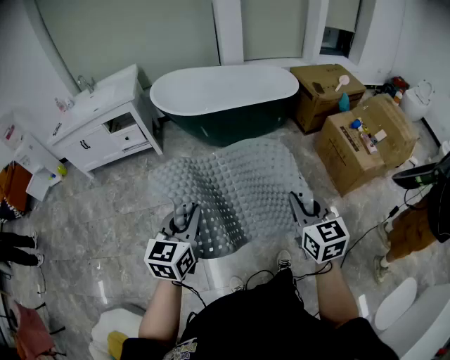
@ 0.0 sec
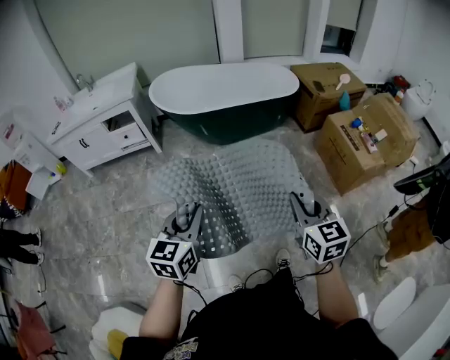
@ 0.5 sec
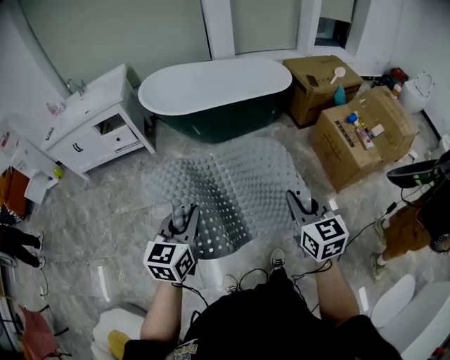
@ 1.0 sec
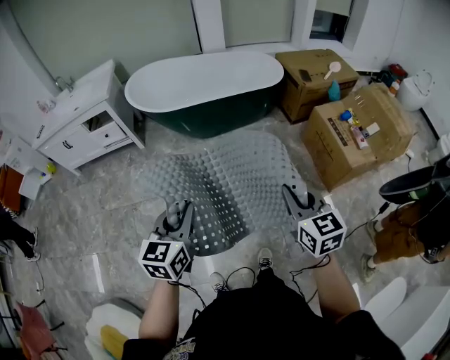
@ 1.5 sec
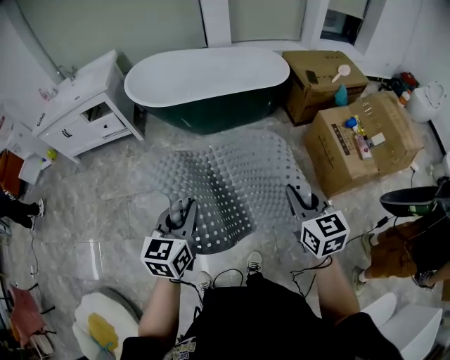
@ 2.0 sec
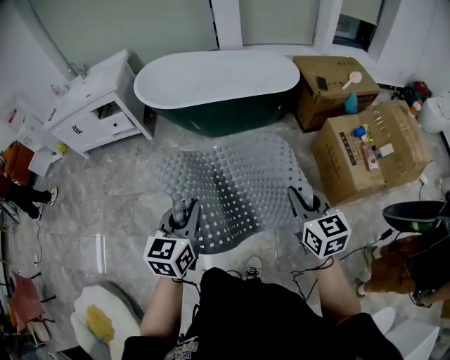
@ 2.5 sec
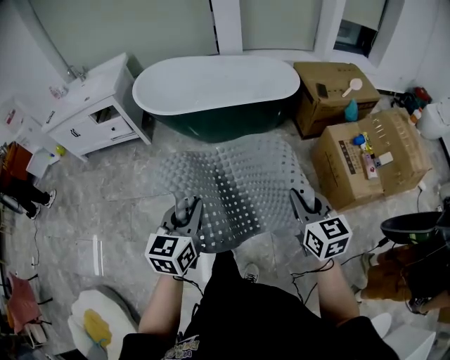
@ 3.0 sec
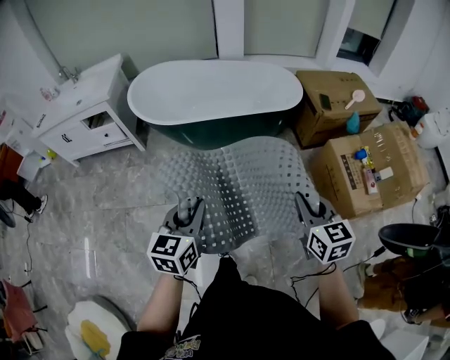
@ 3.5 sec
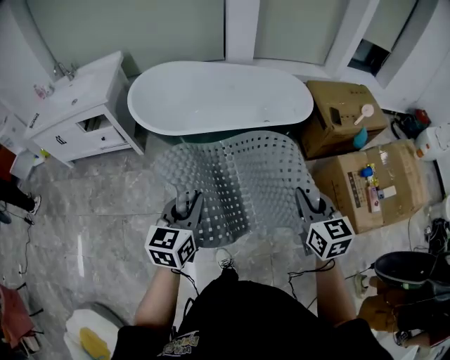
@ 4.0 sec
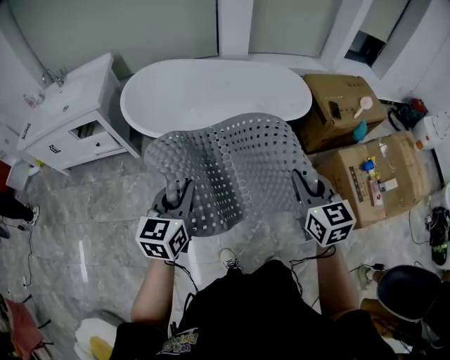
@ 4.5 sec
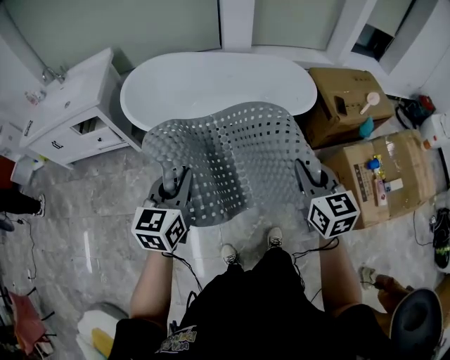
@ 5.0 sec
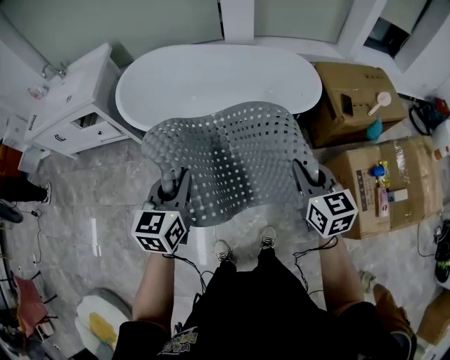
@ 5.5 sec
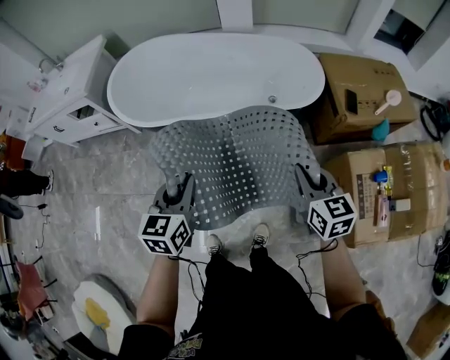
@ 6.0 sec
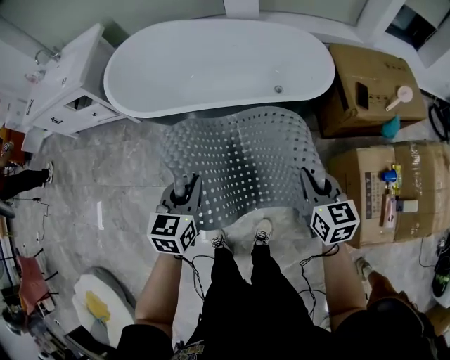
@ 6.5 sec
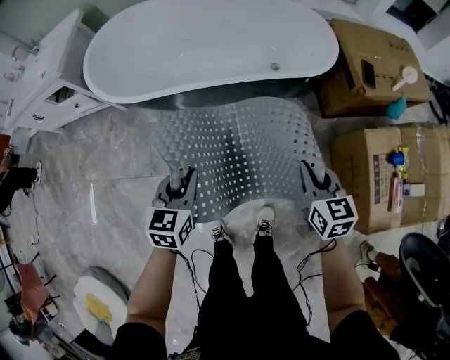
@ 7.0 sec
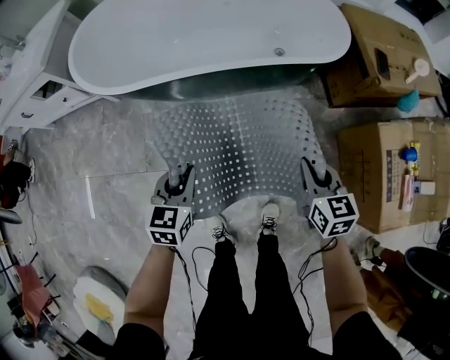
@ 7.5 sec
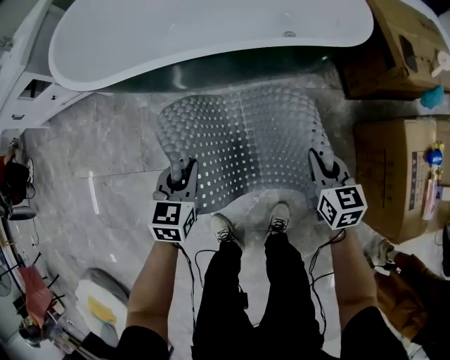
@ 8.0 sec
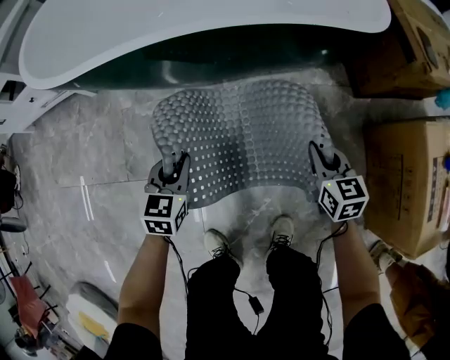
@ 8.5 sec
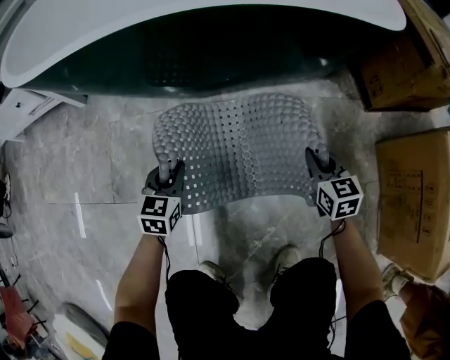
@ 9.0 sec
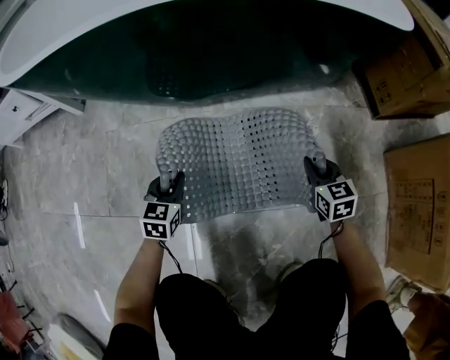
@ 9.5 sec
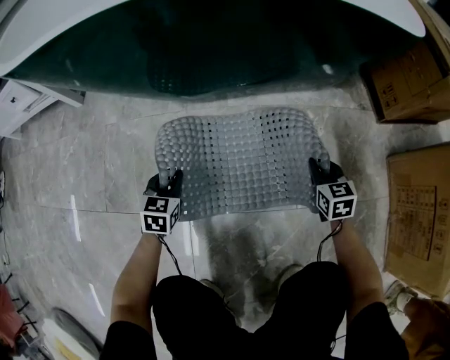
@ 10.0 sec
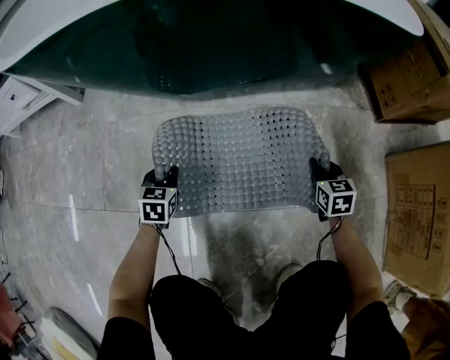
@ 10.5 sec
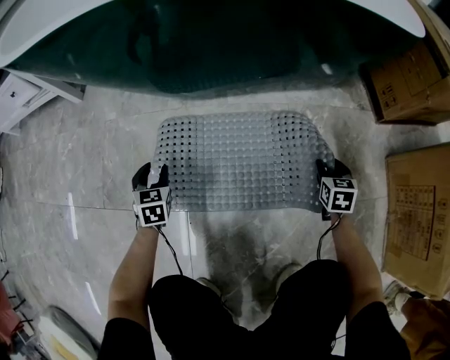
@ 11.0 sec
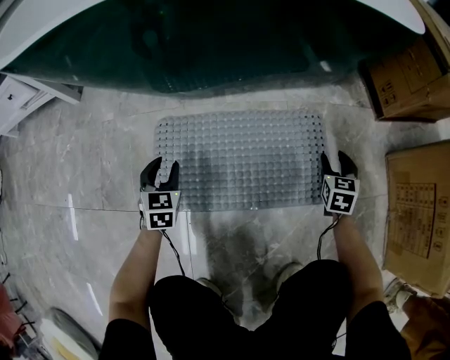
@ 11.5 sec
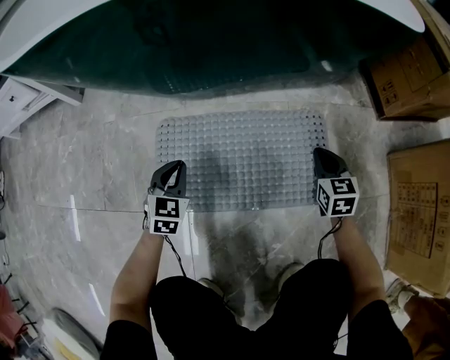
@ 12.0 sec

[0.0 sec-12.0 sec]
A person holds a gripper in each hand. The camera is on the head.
0.0 sec to 2.0 sec: The two grippers go roughly 25 cm to the right and forward.
2.0 sec to 4.0 sec: Both grippers travel together forward, about 30 cm.
4.0 sec to 6.0 sec: The left gripper travels forward and to the right by some 20 cm, while the right gripper shifts roughly 25 cm forward, to the right and downward.
6.0 sec to 8.0 sec: The grippers both shift downward by about 40 cm.
8.0 sec to 10.0 sec: The grippers both shift downward by roughly 40 cm.
10.0 sec to 12.0 sec: The left gripper moves some 5 cm to the left and comes back, and opens and closes again. The right gripper opens and closes again.

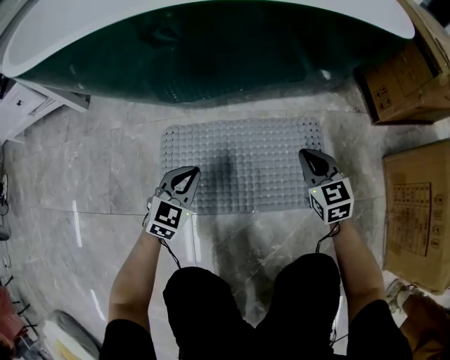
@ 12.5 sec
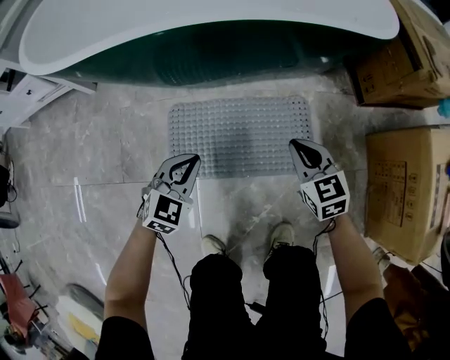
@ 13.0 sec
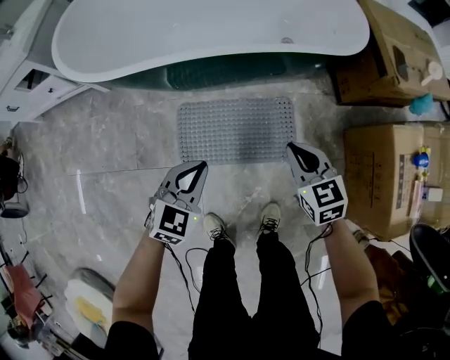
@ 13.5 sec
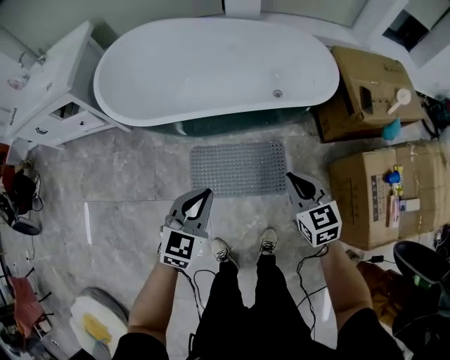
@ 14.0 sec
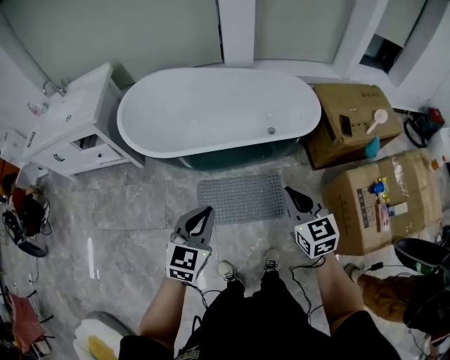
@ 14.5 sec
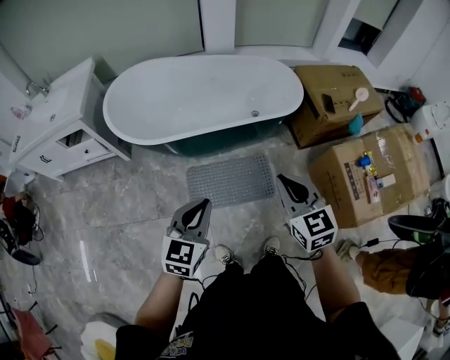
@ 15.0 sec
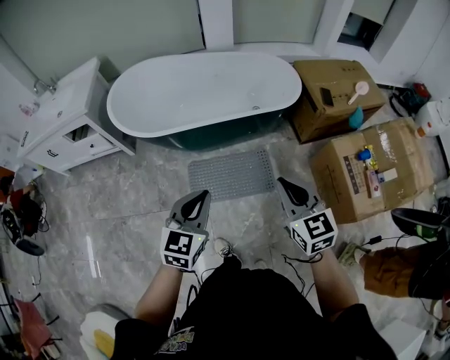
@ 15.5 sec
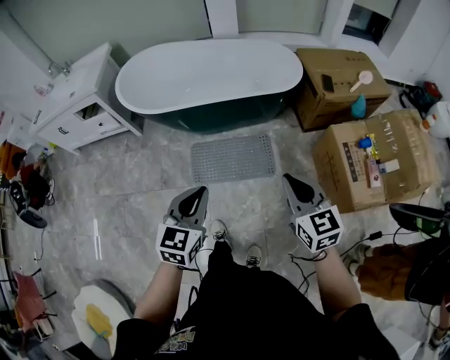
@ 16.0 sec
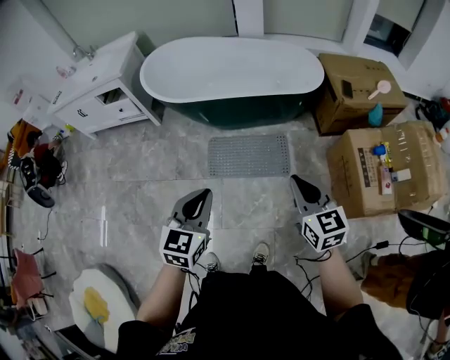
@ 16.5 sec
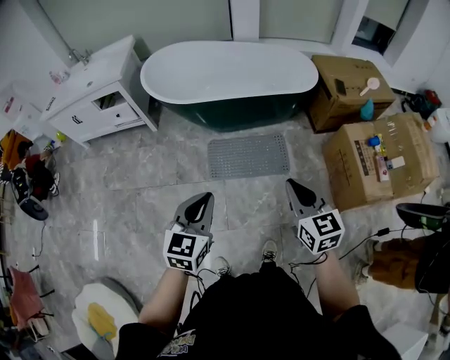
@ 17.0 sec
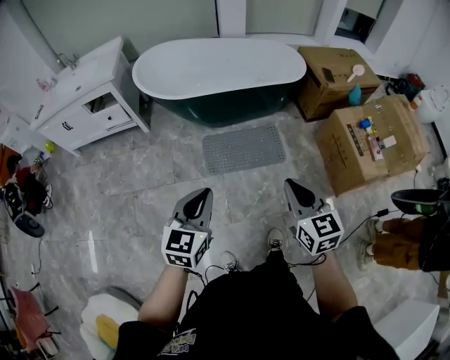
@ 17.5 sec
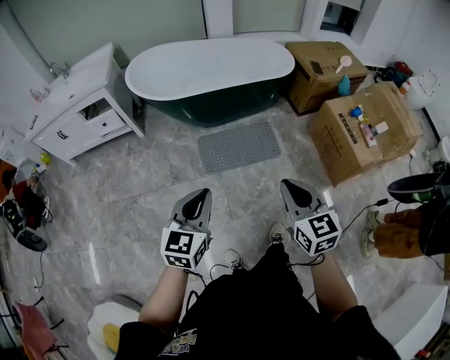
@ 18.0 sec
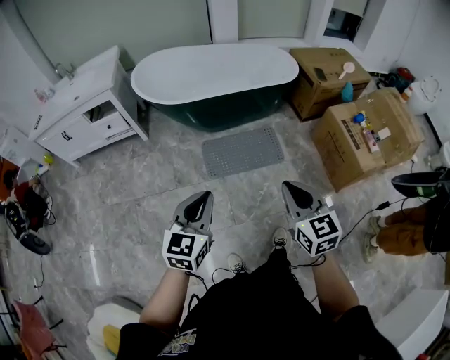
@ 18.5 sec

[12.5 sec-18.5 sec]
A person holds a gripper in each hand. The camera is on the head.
12.5 sec to 14.5 sec: Both grippers move upward, roughly 70 cm.
14.5 sec to 16.5 sec: Both grippers move backward, some 25 cm.
16.5 sec to 18.5 sec: Both grippers move to the left and backward, approximately 25 cm.

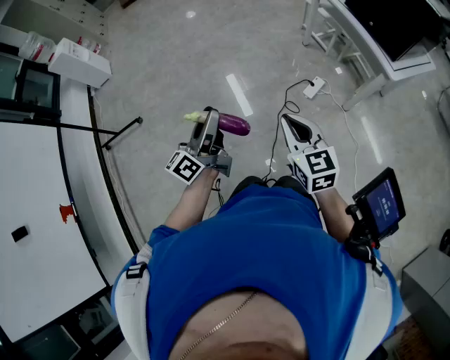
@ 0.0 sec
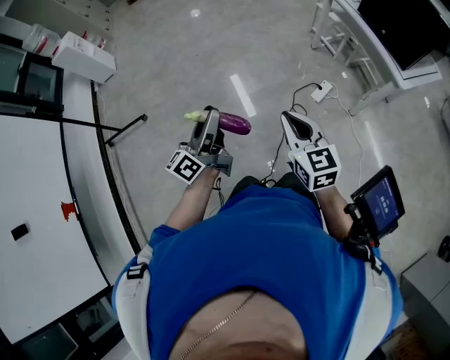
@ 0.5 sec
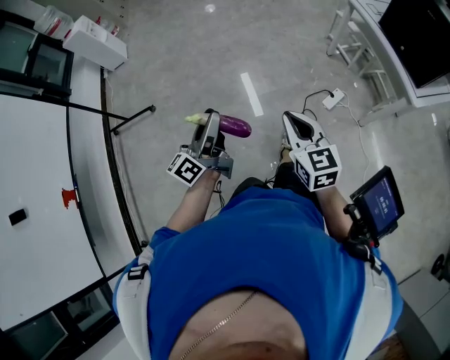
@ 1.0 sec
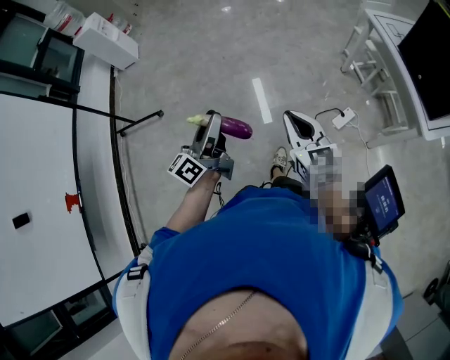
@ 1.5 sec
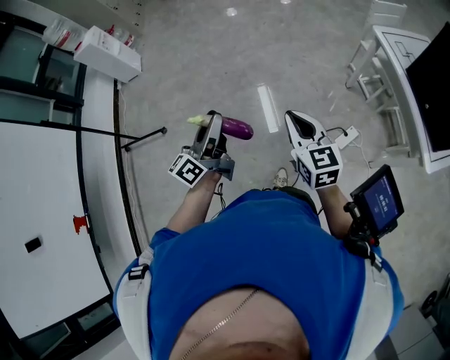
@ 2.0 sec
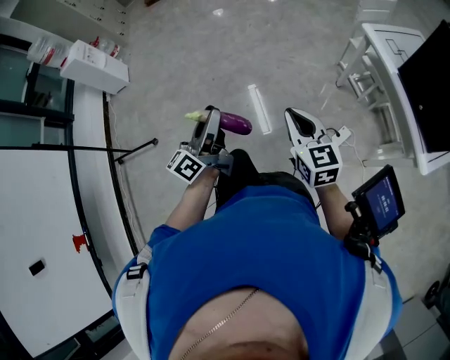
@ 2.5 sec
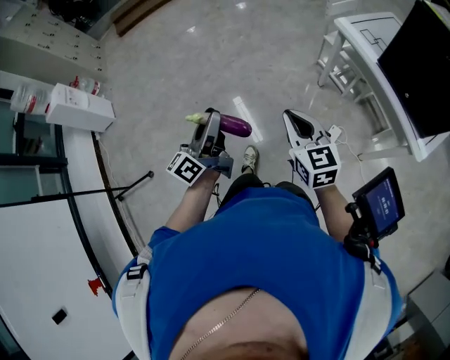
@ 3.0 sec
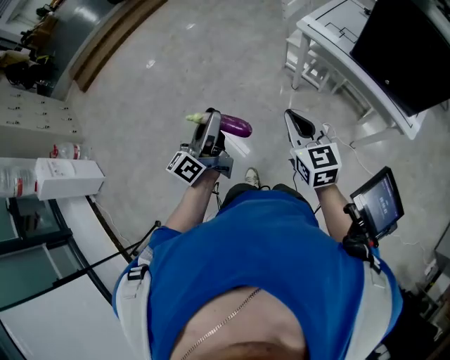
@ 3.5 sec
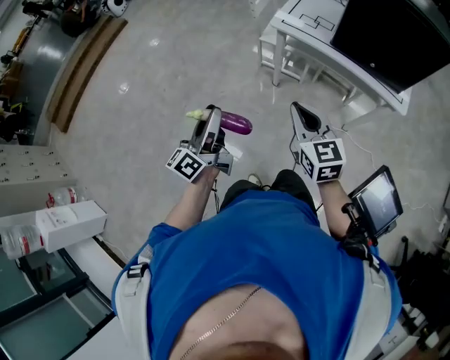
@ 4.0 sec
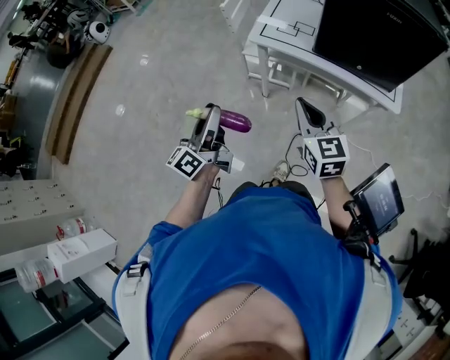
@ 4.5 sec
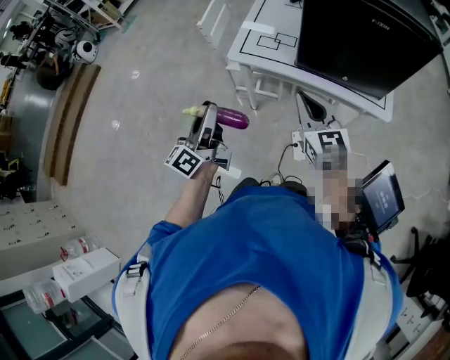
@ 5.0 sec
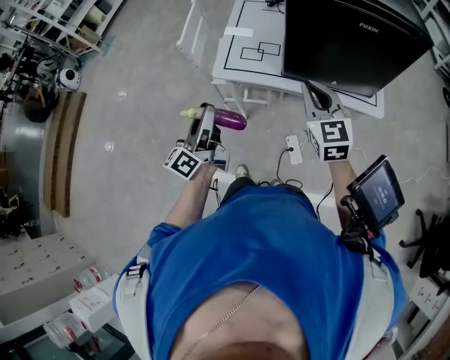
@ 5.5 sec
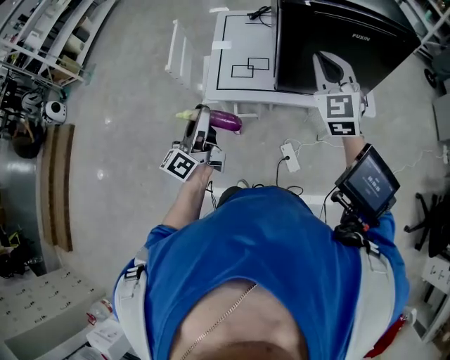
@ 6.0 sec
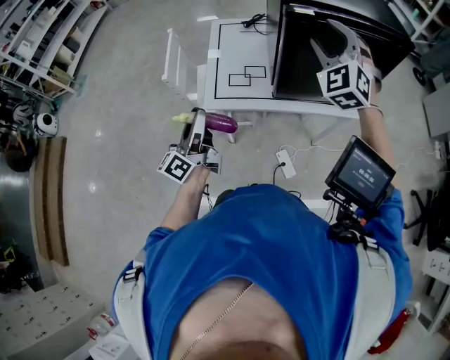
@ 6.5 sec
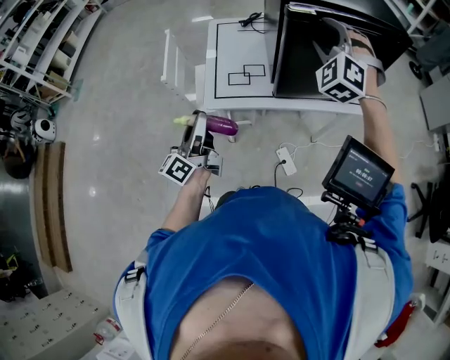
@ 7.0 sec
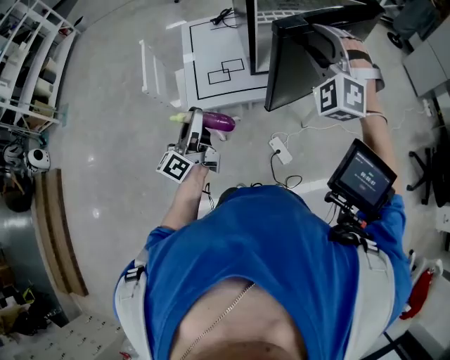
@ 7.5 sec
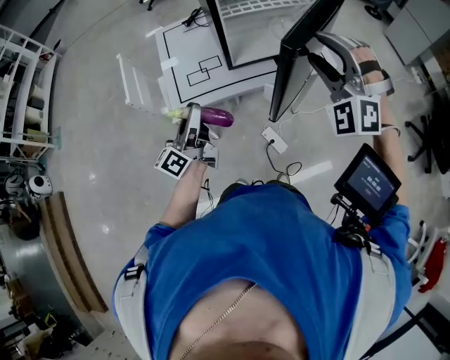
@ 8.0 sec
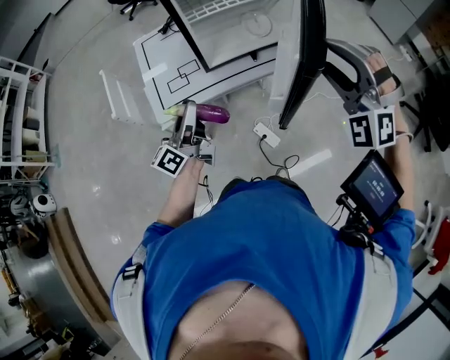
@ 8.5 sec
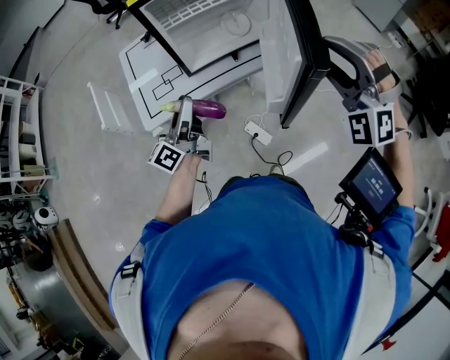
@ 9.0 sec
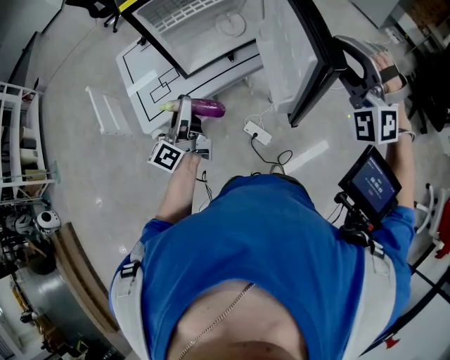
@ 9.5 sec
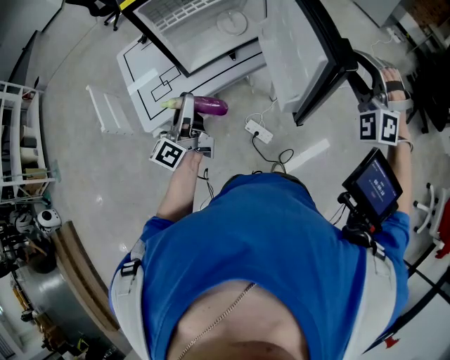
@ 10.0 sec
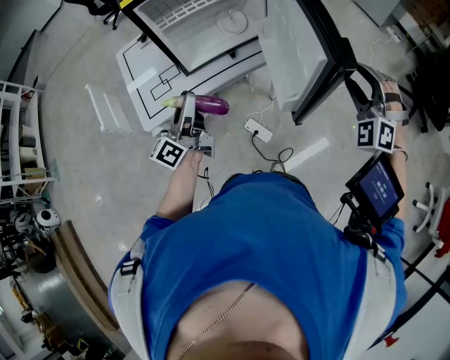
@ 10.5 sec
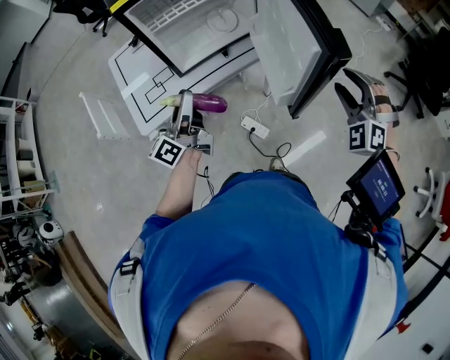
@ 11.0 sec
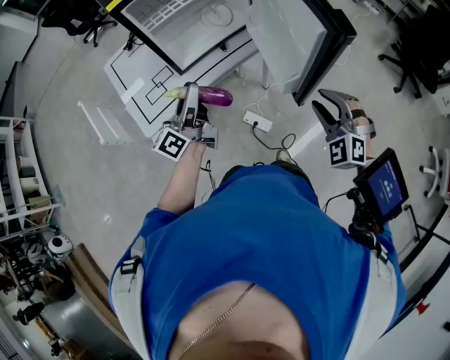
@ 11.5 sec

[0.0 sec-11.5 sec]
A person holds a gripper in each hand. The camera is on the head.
0.0 sec to 2.0 sec: Both grippers travel together forward, about 30 cm.
2.0 sec to 4.0 sec: The left gripper changes place by approximately 50 cm, and turns by approximately 50 degrees; the right gripper moves about 35 cm, and turns by some 50 degrees.
4.0 sec to 6.0 sec: The left gripper moves approximately 40 cm, and swivels about 20 degrees; the right gripper changes place by approximately 40 cm, and changes its angle by about 50 degrees.
6.0 sec to 7.5 sec: The right gripper goes forward and returns, some 5 cm each way, rotates around the line of its fingers by approximately 50 degrees, counterclockwise from behind, and opens up.
7.5 sec to 9.5 sec: The right gripper heads to the right, covering some 25 cm, while the left gripper shifts about 20 cm to the right and forward.
9.5 sec to 11.5 sec: The right gripper shifts approximately 20 cm downward and backward, and changes its angle by about 30 degrees.
